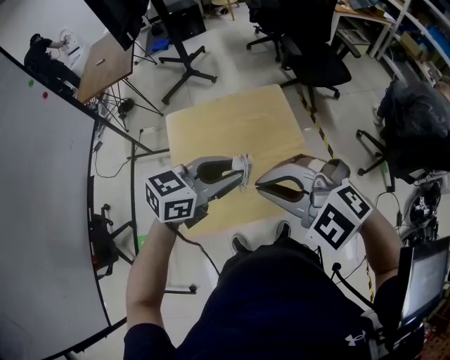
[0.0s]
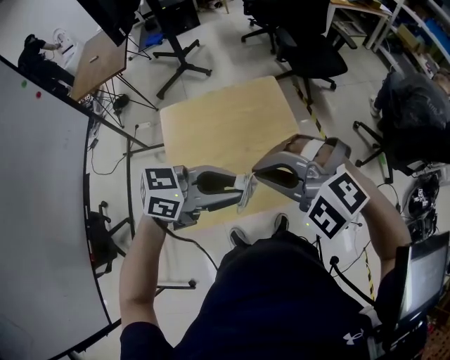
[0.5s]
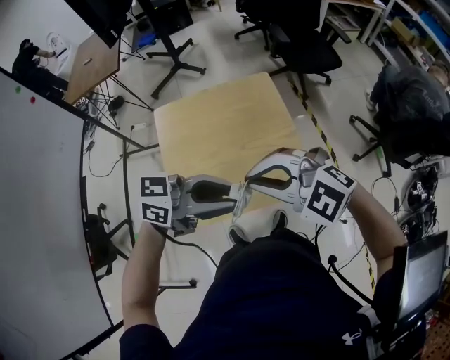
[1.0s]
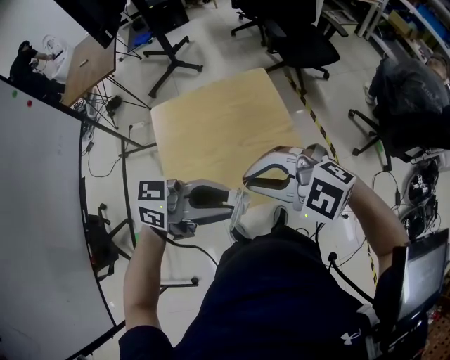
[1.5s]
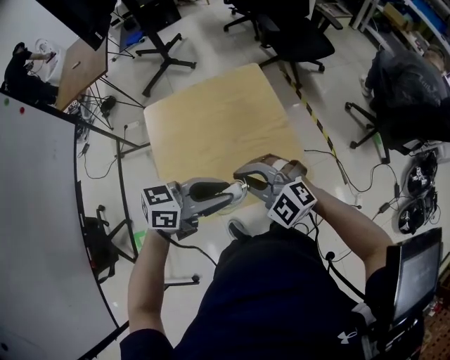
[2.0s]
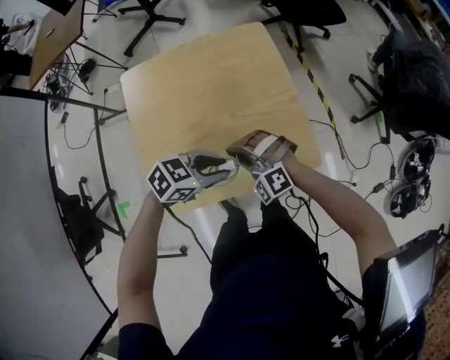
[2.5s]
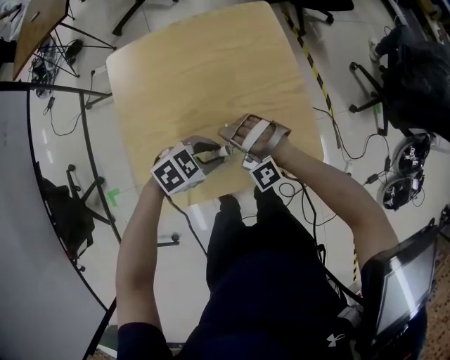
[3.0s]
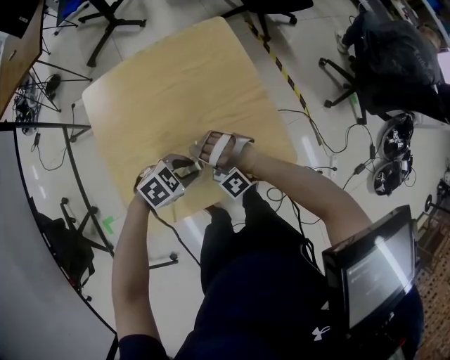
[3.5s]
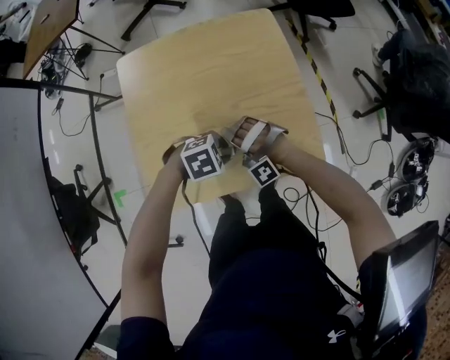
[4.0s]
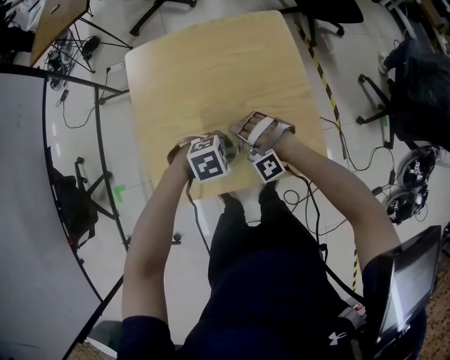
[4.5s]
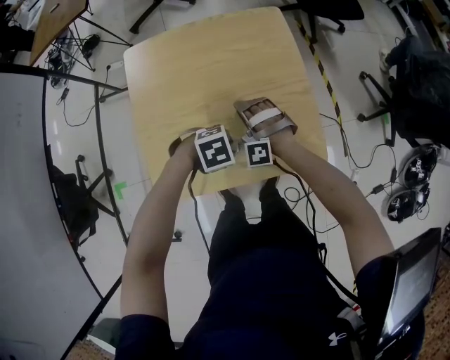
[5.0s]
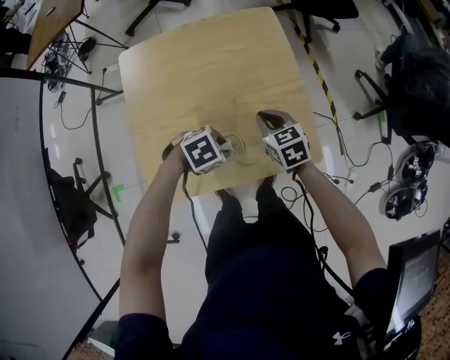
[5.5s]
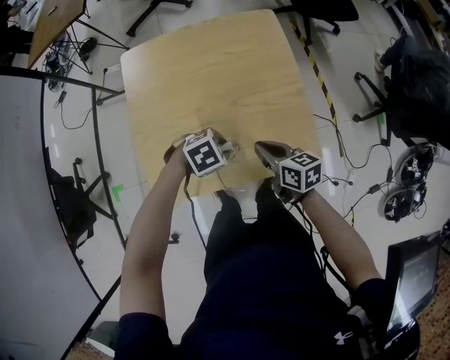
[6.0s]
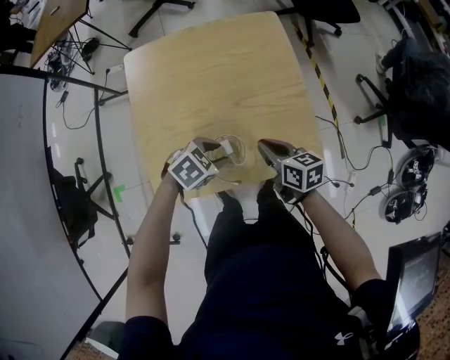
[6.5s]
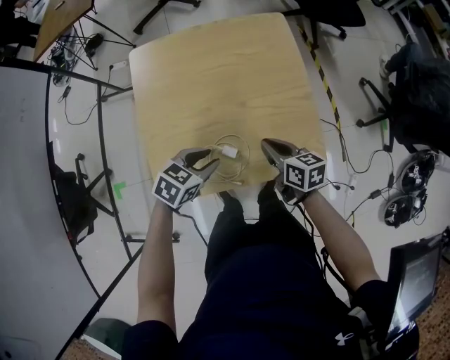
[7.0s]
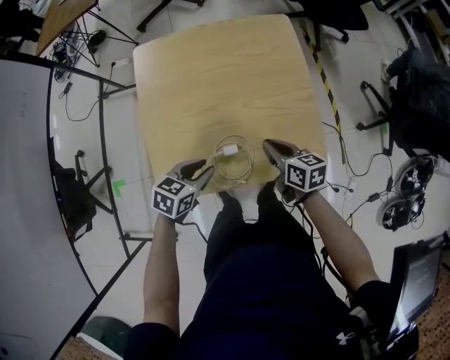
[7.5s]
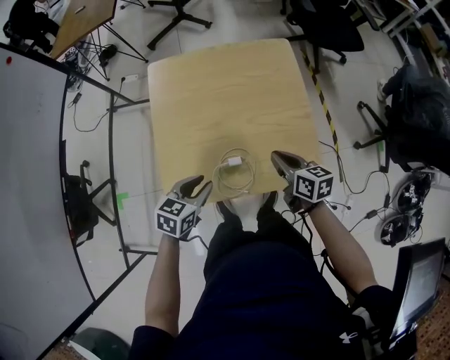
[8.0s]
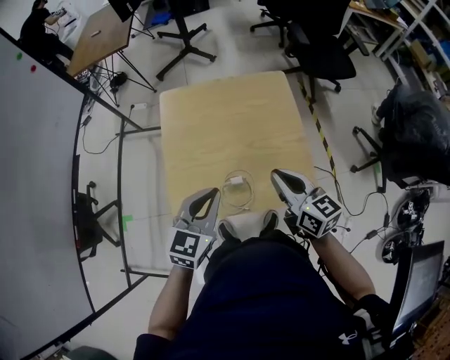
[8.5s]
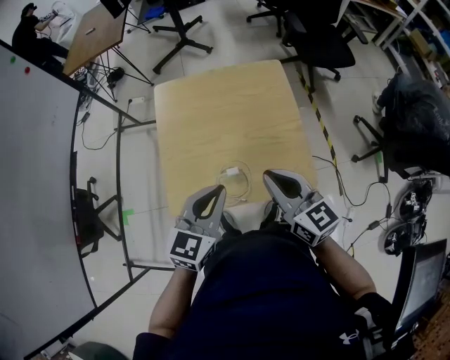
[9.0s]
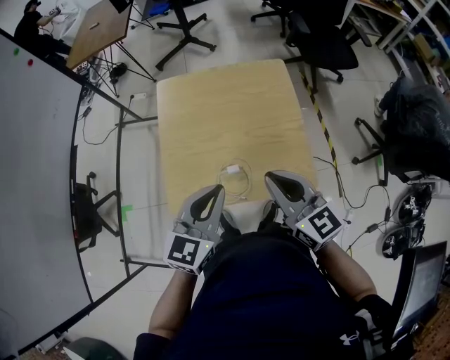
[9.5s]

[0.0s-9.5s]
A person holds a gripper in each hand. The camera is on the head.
0.0s to 2.0s: The right gripper goes about 15 cm downward. The left gripper shifts by approximately 10 cm.
2.0s to 4.0s: Both grippers move downward, approximately 25 cm. The left gripper points its fingers approximately 50 degrees further downward. Meanwhile the right gripper rolls counterclockwise, seen from behind, by about 60 degrees, and opens up.
4.0s to 5.5s: The right gripper changes place by some 10 cm, twists approximately 110 degrees clockwise, seen from behind, and closes.
5.5s to 7.5s: The left gripper ends up about 10 cm from where it was, and rotates some 50 degrees; the right gripper changes place by roughly 5 cm, and swivels roughly 30 degrees.
7.5s to 9.5s: The grippers both shift upward by approximately 25 cm. The right gripper changes its angle by some 40 degrees. Meanwhile the left gripper rotates roughly 40 degrees, and closes.

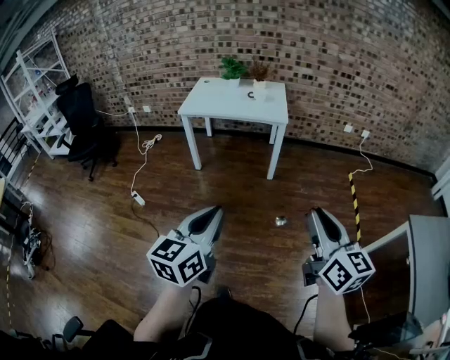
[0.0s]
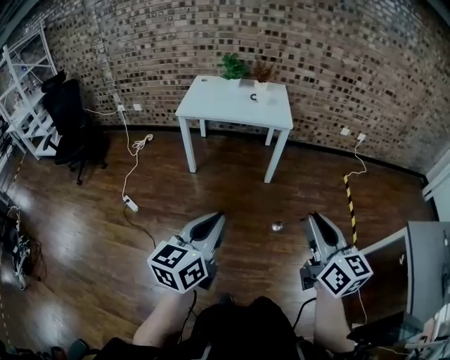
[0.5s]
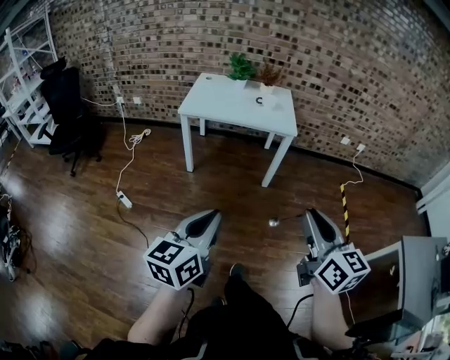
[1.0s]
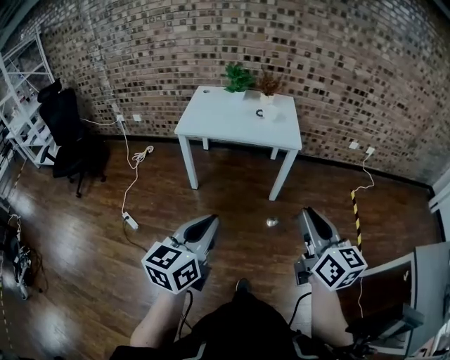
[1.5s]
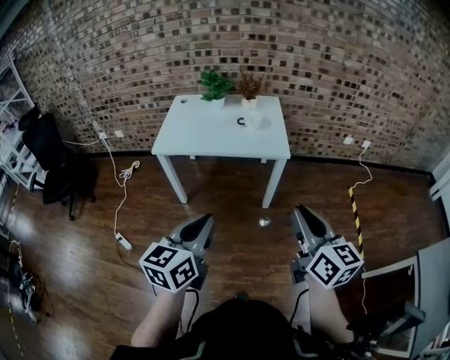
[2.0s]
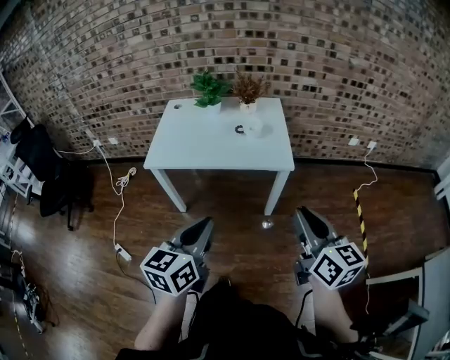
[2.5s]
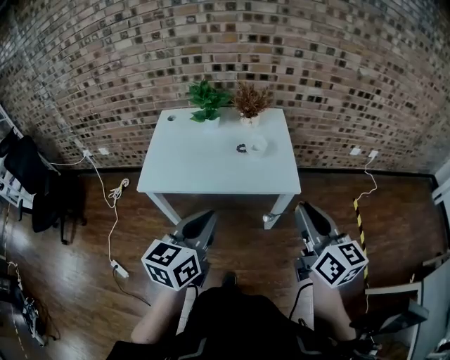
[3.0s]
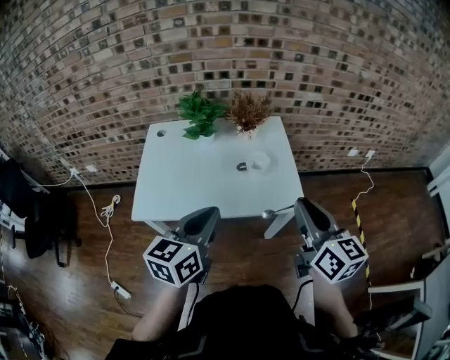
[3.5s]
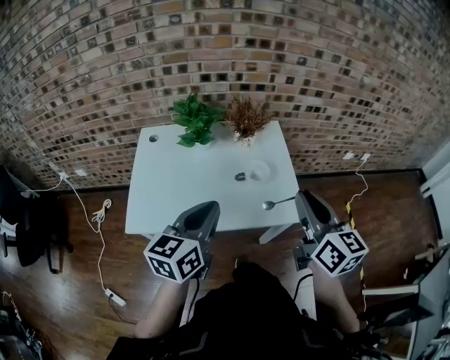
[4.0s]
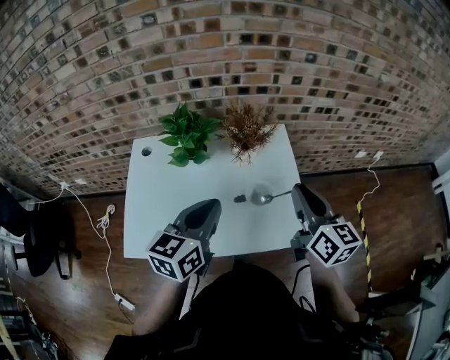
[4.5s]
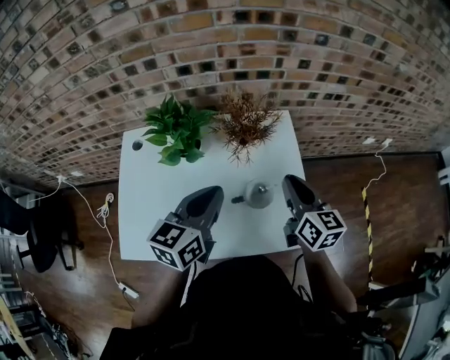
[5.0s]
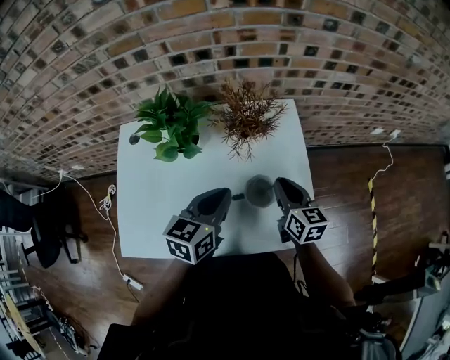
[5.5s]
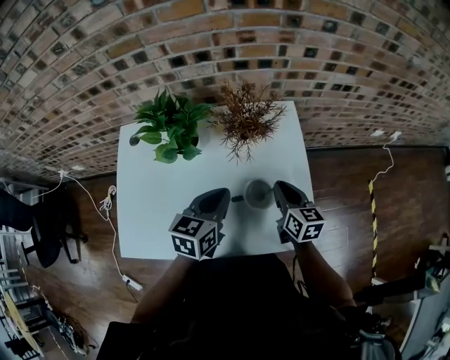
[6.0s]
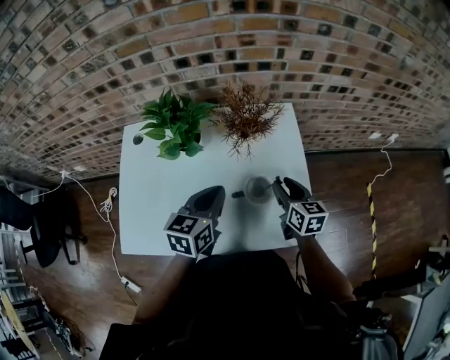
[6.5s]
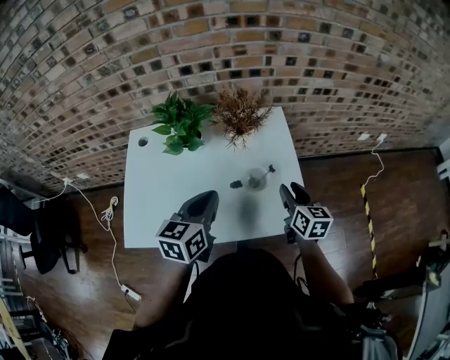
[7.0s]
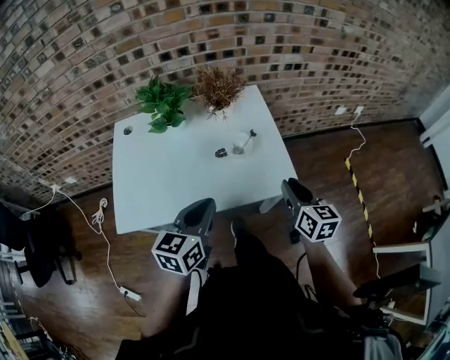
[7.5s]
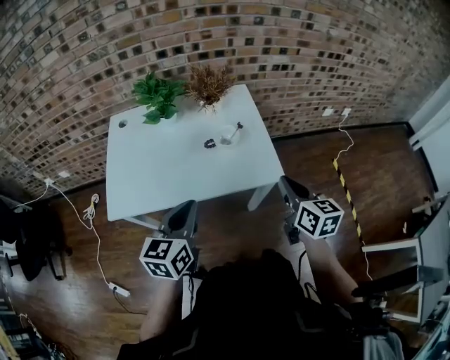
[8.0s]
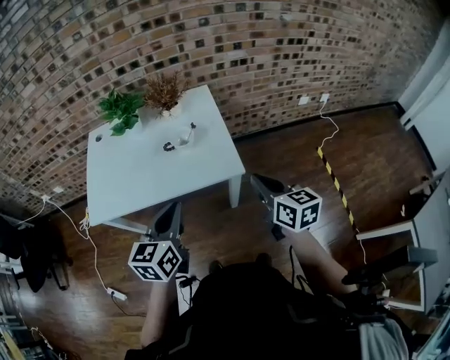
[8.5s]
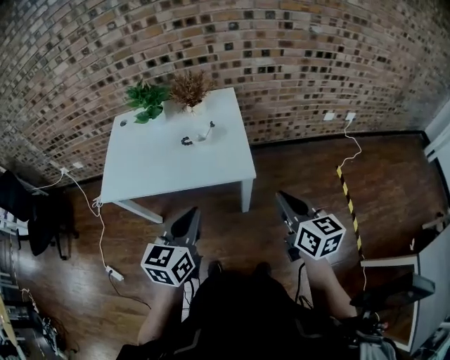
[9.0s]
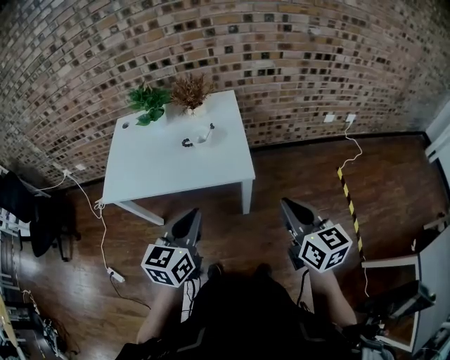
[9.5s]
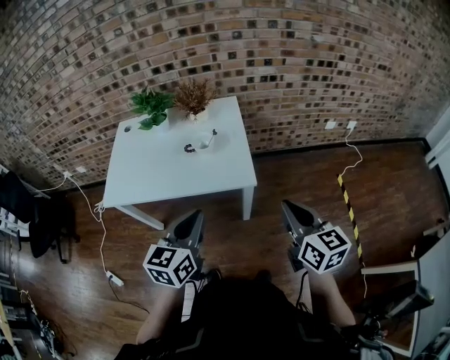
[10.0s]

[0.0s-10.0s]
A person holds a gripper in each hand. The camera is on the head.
0.0s to 2.0s: Both grippers travel together forward, roughly 35 cm.
2.0s to 4.0s: The two grippers travel together, forward, some 50 cm.
4.0s to 6.0s: The right gripper travels downward and forward by roughly 40 cm, and rotates roughly 20 degrees; the left gripper heads forward and downward, covering roughly 30 cm.
6.0s to 8.0s: The left gripper goes about 30 cm backward. Meanwhile the right gripper travels backward and upward by about 30 cm, and opens, then closes once more.
8.0s to 10.0s: The grippers both shift to the right and backward by roughly 20 cm.

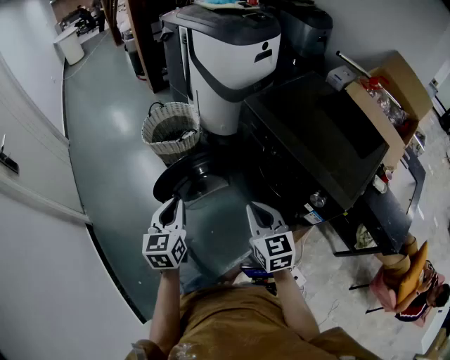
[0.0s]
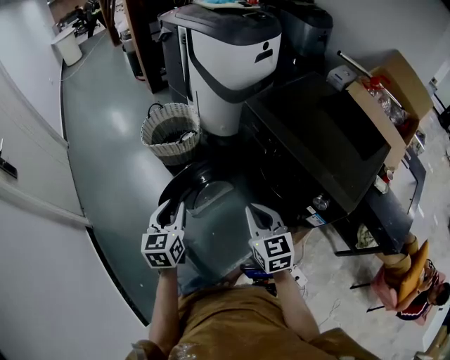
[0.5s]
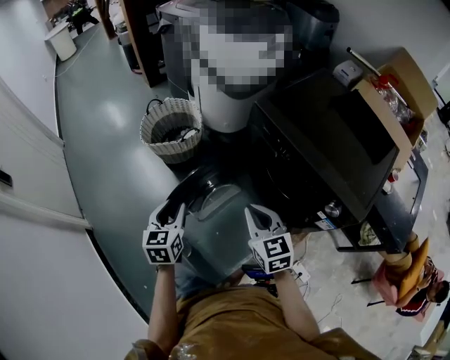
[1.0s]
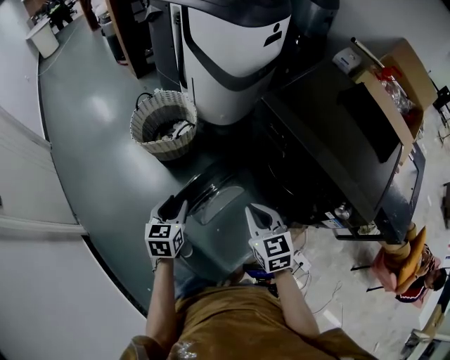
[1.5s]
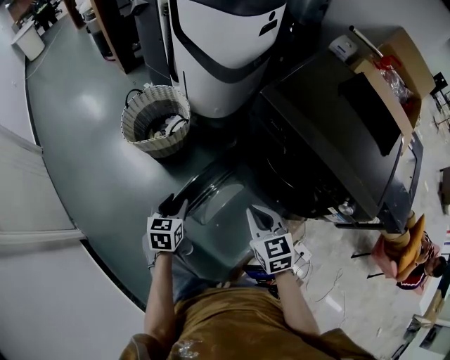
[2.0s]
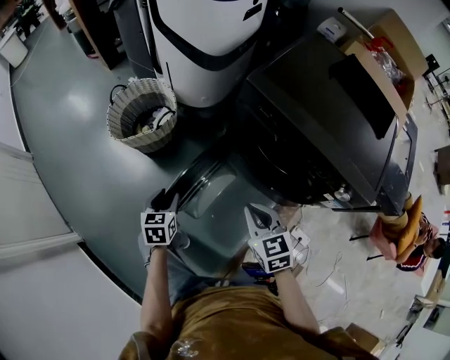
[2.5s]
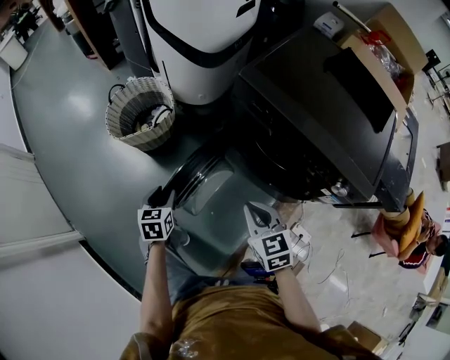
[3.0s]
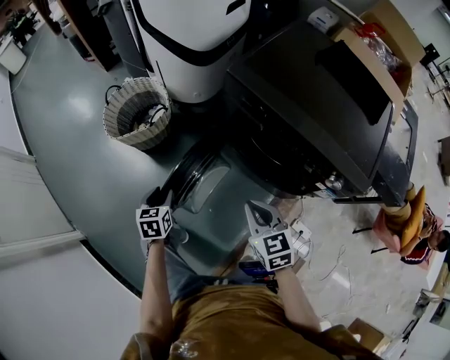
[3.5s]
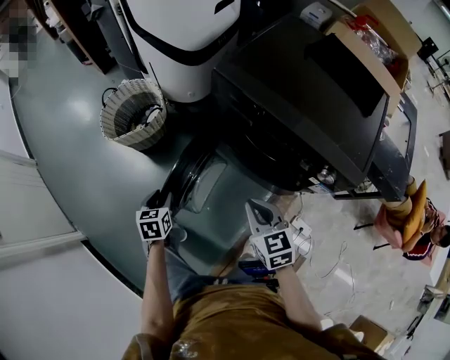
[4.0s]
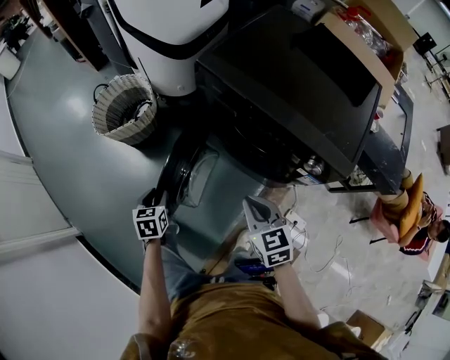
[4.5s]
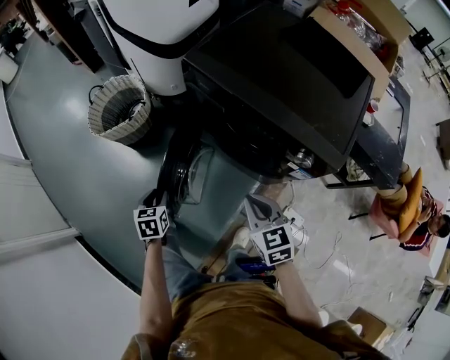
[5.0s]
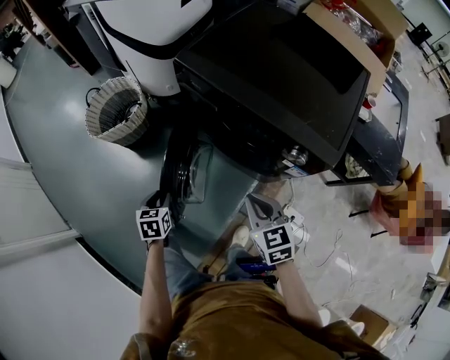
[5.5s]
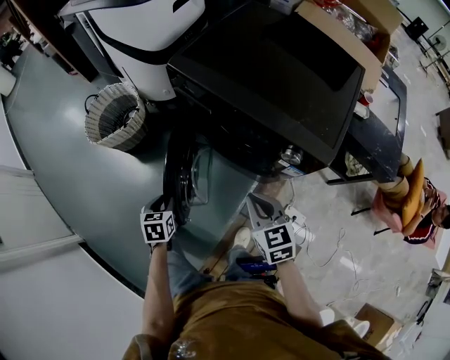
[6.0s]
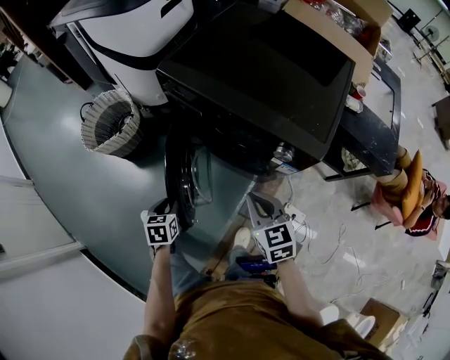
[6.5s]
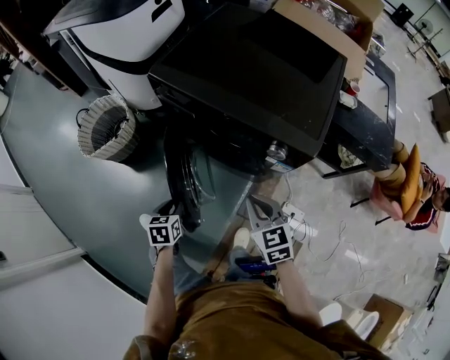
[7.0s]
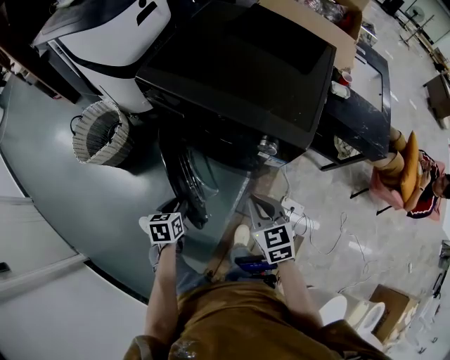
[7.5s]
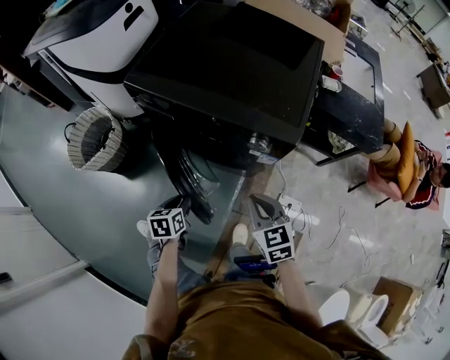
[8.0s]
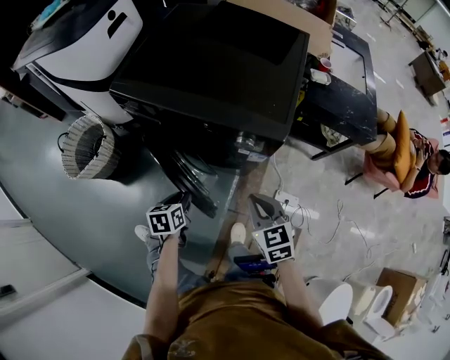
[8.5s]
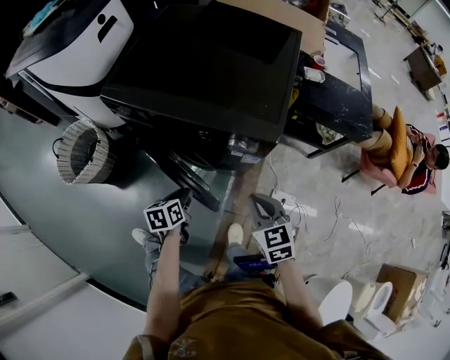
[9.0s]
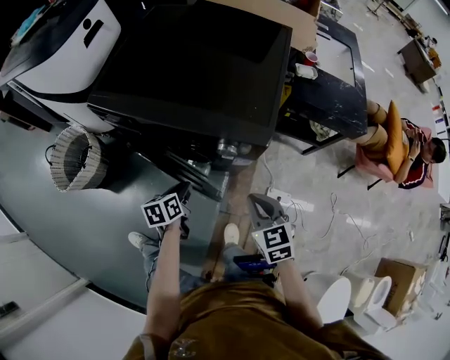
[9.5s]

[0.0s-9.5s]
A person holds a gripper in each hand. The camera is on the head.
0.0s to 2.0s: The right gripper goes some 15 cm forward, downward and to the left. The left gripper heads downward and forward, covering approximately 25 cm, turns by roughly 30 degrees, and opens its fingers.
2.0s to 4.0s: The right gripper is displaced to the right and backward by some 10 cm; the left gripper changes place by some 5 cm.
4.0s to 5.5s: Both grippers travel together to the right and backward, roughly 10 cm.
5.5s to 7.5s: The right gripper is displaced to the right by approximately 10 cm, while the left gripper travels to the right by some 10 cm.
7.5s to 9.5s: The right gripper goes approximately 10 cm to the right. The left gripper goes roughly 15 cm to the right and forward.
